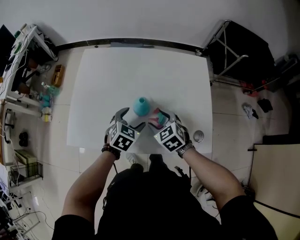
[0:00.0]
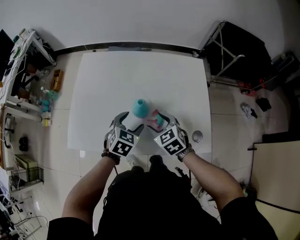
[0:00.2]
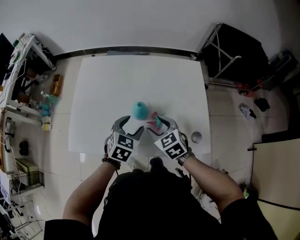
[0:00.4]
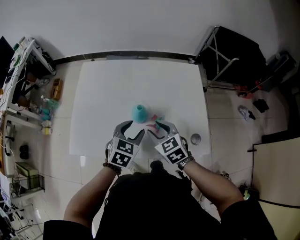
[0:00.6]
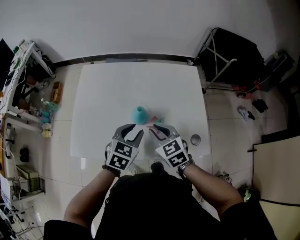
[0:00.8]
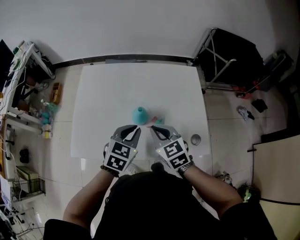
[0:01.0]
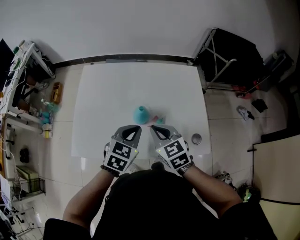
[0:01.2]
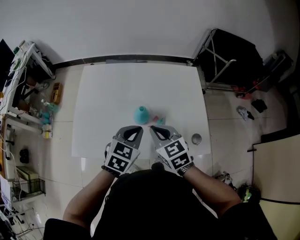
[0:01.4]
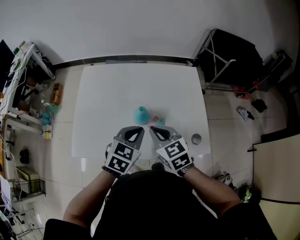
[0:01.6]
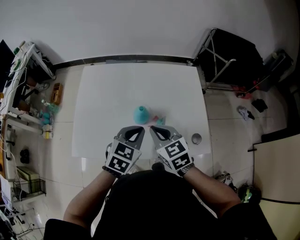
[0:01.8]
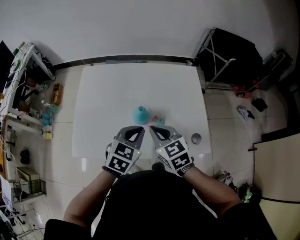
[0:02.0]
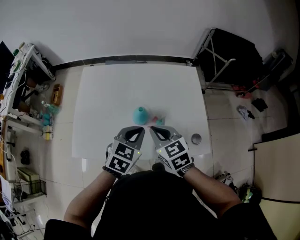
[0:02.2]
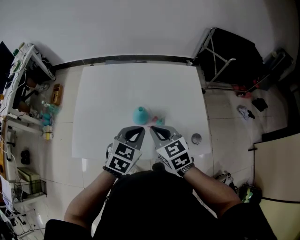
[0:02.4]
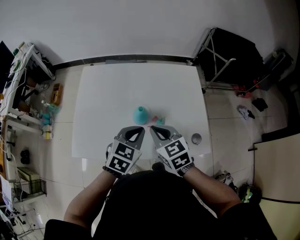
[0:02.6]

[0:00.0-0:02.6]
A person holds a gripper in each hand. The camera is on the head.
0:00.0 to 0:01.2: Both grippers move upward, some 10 cm. The right gripper closes, while the left gripper closes up.
0:01.2 to 0:02.6: There are only small adjustments of the grippers.

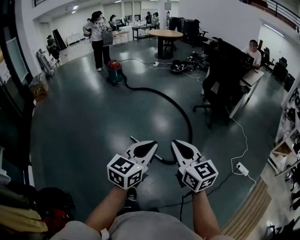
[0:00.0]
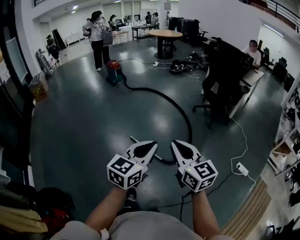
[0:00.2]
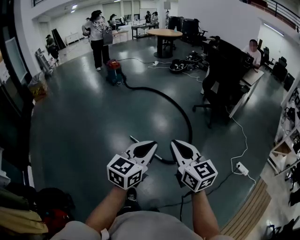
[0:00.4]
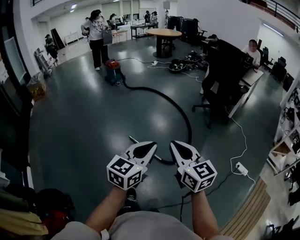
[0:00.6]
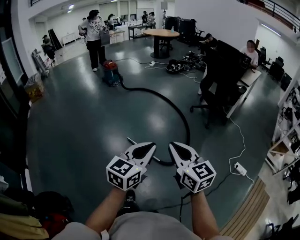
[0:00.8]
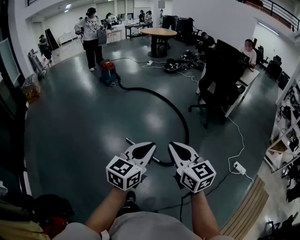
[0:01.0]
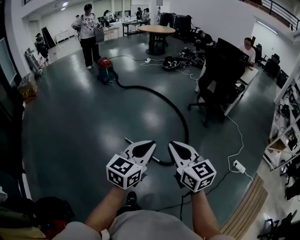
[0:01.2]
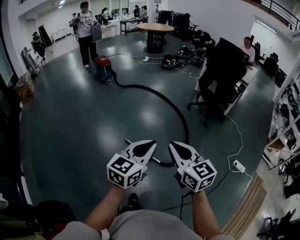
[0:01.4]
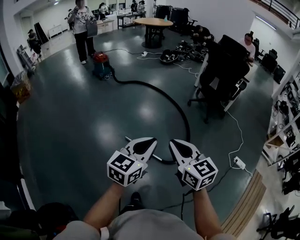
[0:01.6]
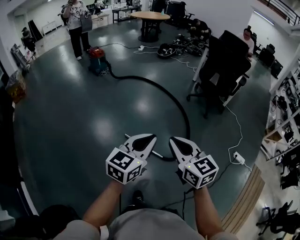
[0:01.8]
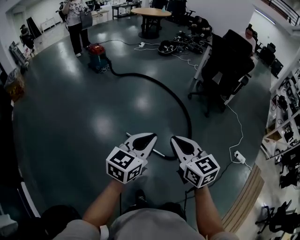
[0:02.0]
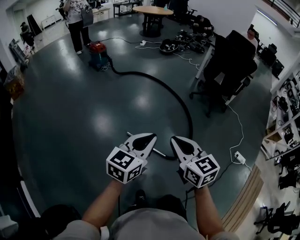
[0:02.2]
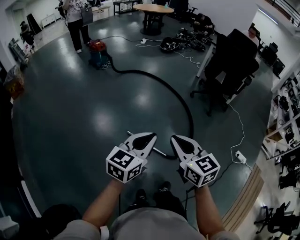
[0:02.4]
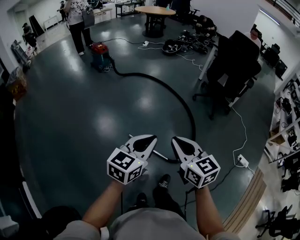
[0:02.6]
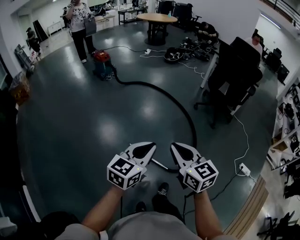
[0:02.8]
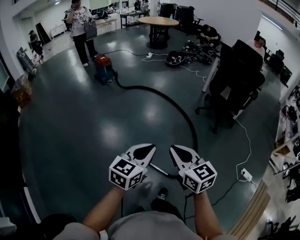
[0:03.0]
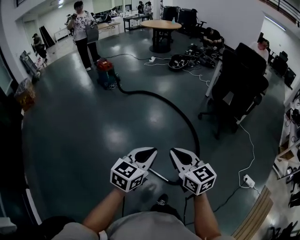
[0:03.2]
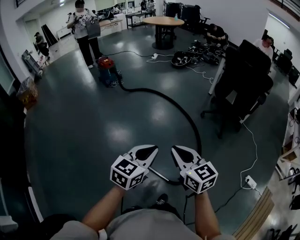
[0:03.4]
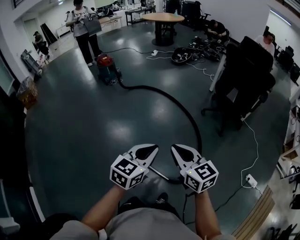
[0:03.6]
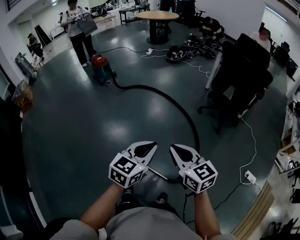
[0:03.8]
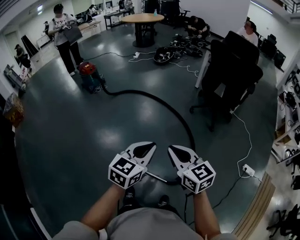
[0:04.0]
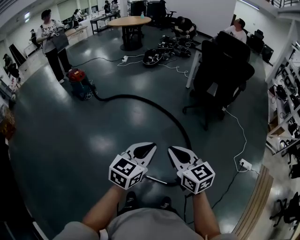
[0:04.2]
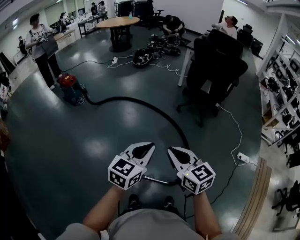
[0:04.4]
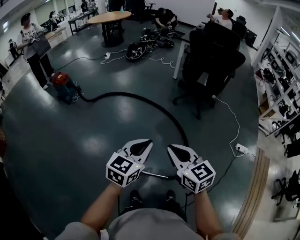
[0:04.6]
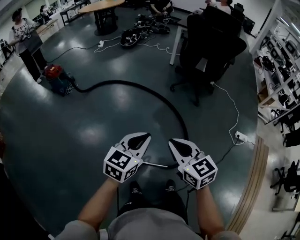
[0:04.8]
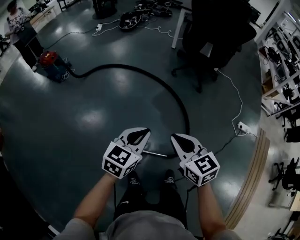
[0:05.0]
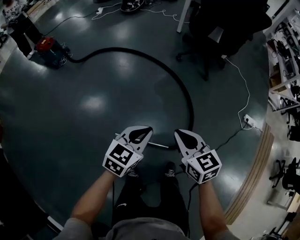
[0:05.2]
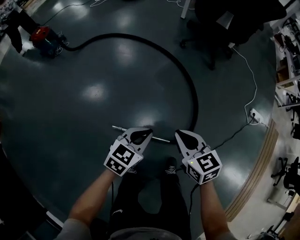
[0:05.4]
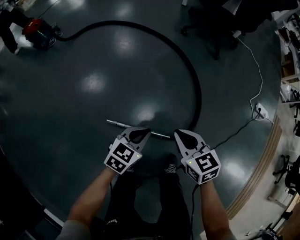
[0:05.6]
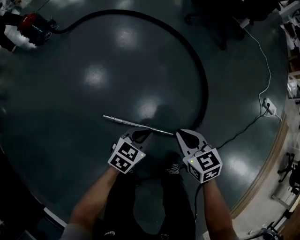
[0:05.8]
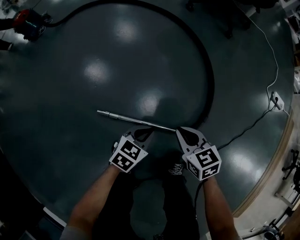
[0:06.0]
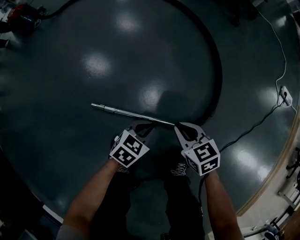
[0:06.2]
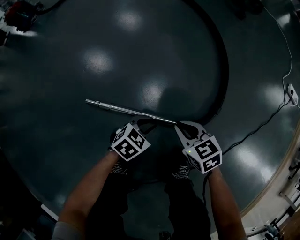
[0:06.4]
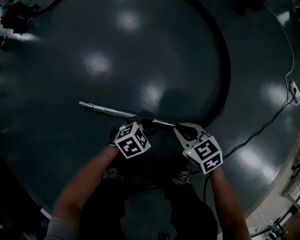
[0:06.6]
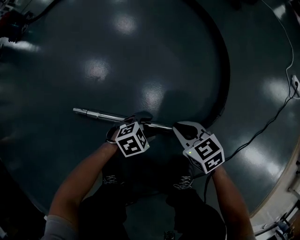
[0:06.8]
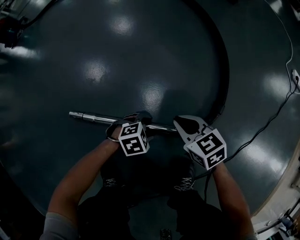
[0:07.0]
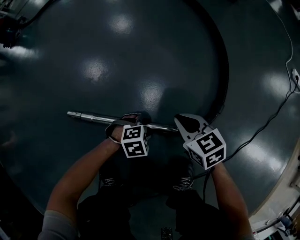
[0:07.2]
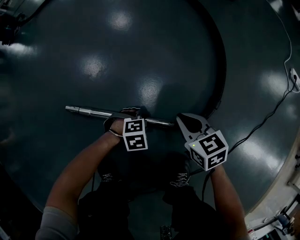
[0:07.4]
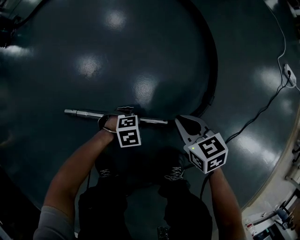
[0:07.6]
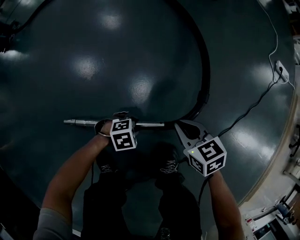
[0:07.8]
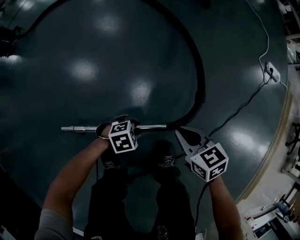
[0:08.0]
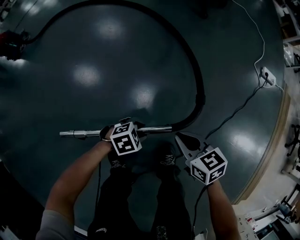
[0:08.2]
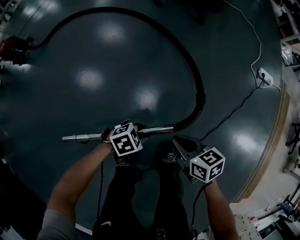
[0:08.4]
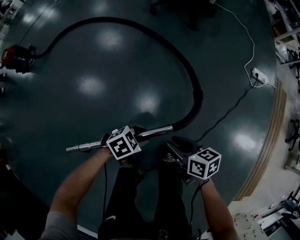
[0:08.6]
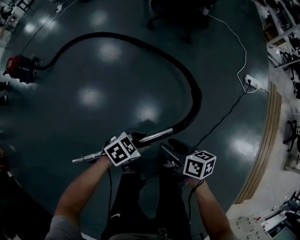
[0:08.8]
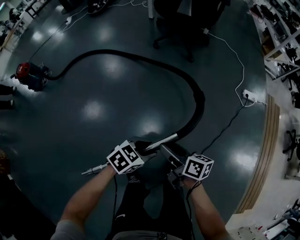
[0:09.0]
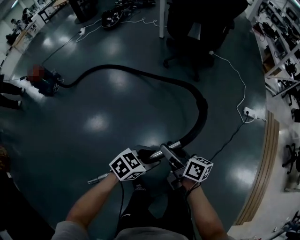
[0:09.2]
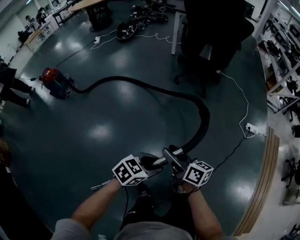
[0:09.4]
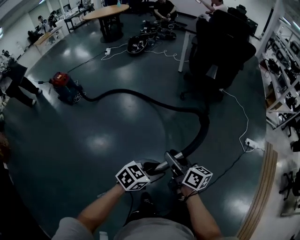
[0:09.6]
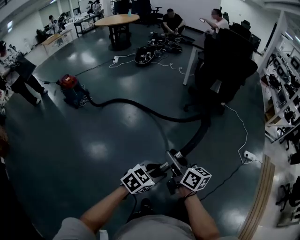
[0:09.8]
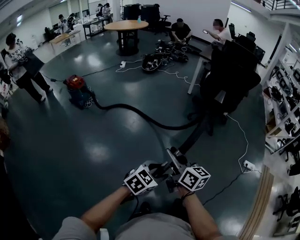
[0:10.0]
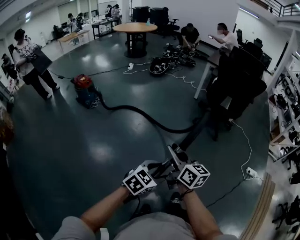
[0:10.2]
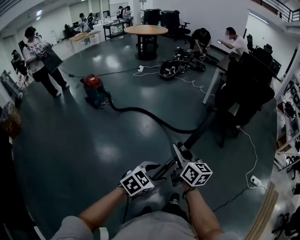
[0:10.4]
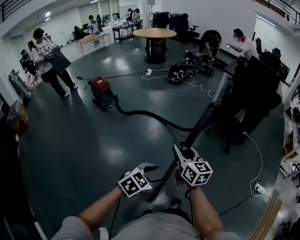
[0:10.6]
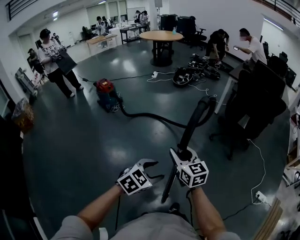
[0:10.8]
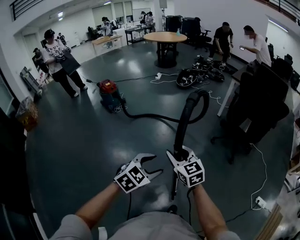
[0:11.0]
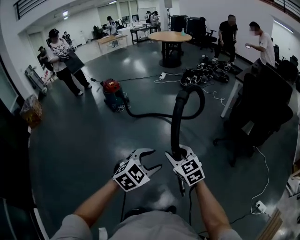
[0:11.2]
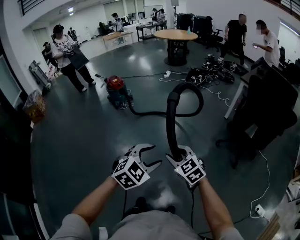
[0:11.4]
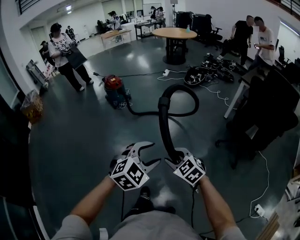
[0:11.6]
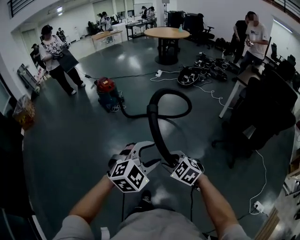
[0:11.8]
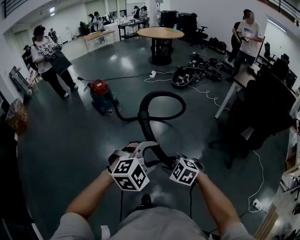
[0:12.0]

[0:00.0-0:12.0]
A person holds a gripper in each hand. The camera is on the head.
0:00.0 to 0:01.6: The grippers both shift forward and to the left by approximately 20 cm.
0:01.6 to 0:03.0: Both grippers travel together forward, some 15 cm.
0:03.0 to 0:04.4: The grippers both shift forward by about 15 cm.
0:04.4 to 0:06.0: Both grippers travel together downward, roughly 60 cm. The right gripper rotates roughly 30 degrees. Meanwhile the left gripper tilts its fingers about 30 degrees downward.
0:06.0 to 0:07.6: The left gripper is displaced downward by roughly 30 cm, rotates approximately 60 degrees, and opens up. Meanwhile the right gripper moves downward, roughly 20 cm.
0:07.6 to 0:09.0: Both grippers move upward, approximately 50 cm. The right gripper rotates around the line of its fingers by approximately 40 degrees, clockwise from behind, and opens its fingers, while the left gripper changes its angle by about 40 degrees.
0:09.0 to 0:10.4: The right gripper heads upward, covering roughly 30 cm, and turns by approximately 40 degrees, while the left gripper ends up some 40 cm from where it was, and changes its angle by approximately 30 degrees.
0:10.4 to 0:12.0: The right gripper moves about 15 cm, and angles its fingers downward, by some 50 degrees; the left gripper ends up roughly 25 cm from where it was, and rotates roughly 40 degrees.

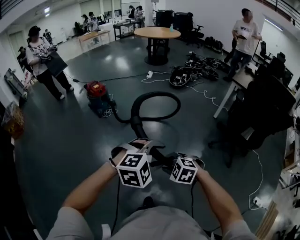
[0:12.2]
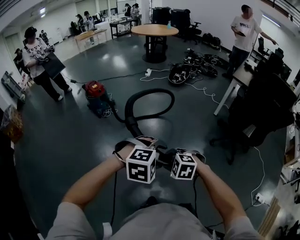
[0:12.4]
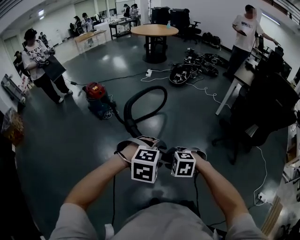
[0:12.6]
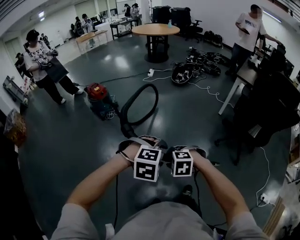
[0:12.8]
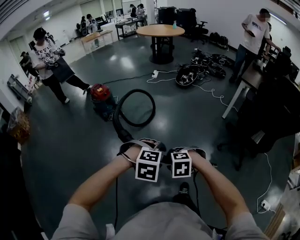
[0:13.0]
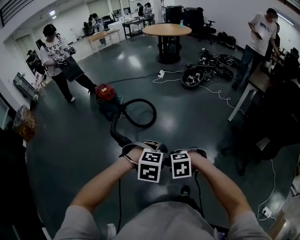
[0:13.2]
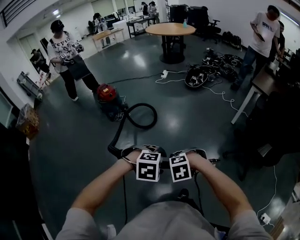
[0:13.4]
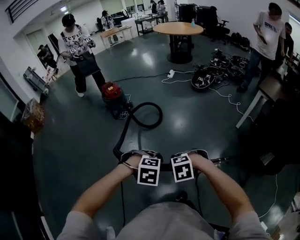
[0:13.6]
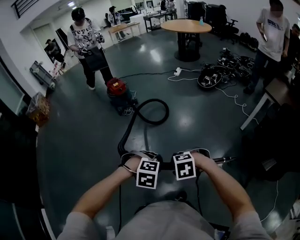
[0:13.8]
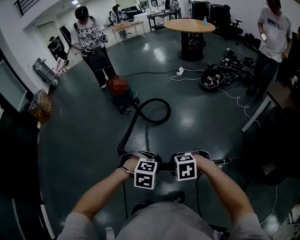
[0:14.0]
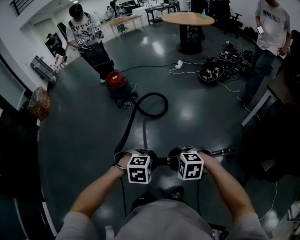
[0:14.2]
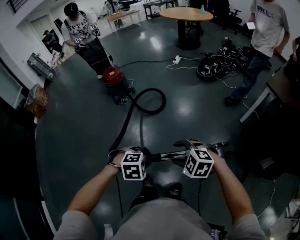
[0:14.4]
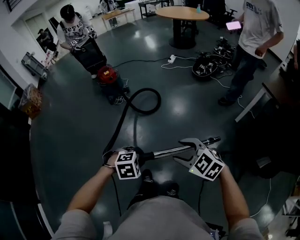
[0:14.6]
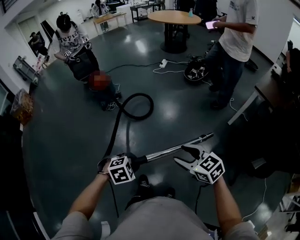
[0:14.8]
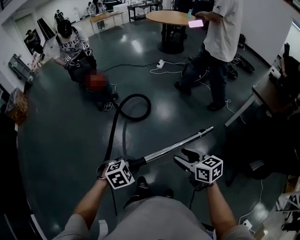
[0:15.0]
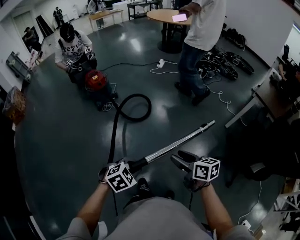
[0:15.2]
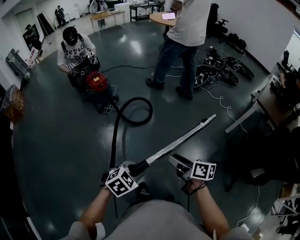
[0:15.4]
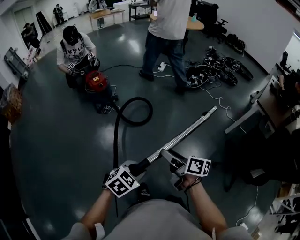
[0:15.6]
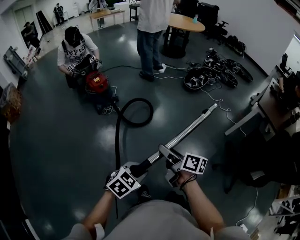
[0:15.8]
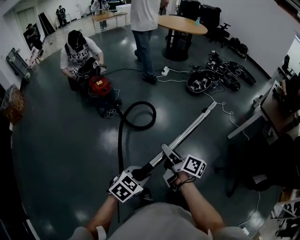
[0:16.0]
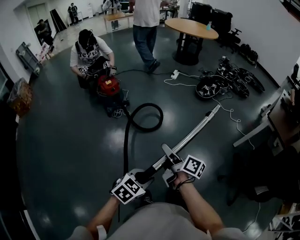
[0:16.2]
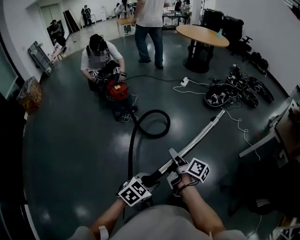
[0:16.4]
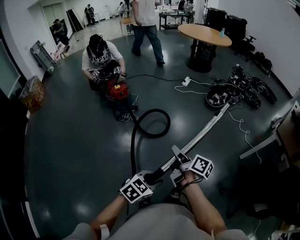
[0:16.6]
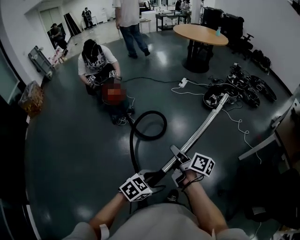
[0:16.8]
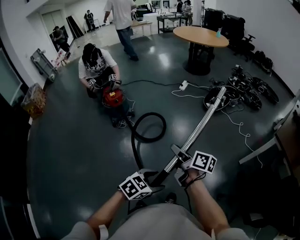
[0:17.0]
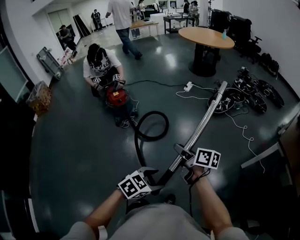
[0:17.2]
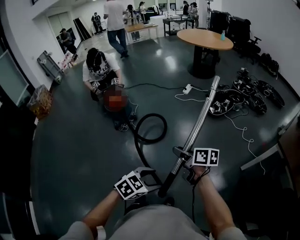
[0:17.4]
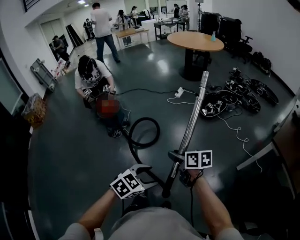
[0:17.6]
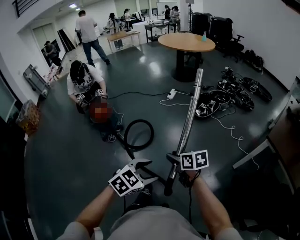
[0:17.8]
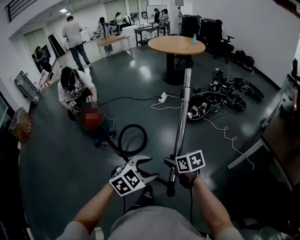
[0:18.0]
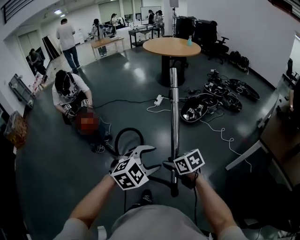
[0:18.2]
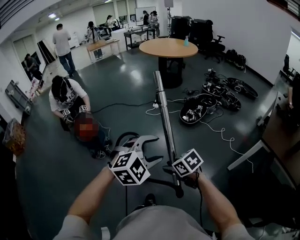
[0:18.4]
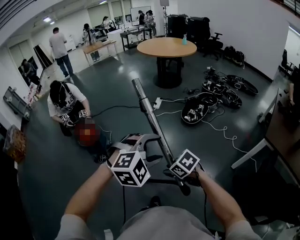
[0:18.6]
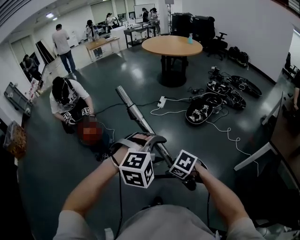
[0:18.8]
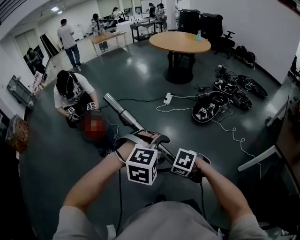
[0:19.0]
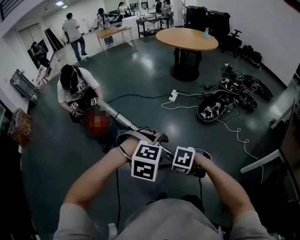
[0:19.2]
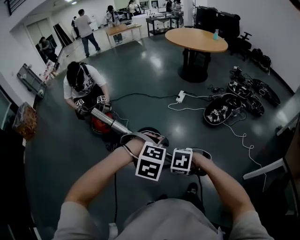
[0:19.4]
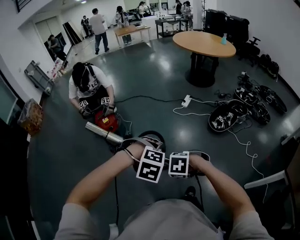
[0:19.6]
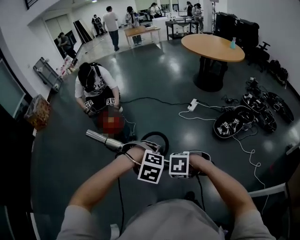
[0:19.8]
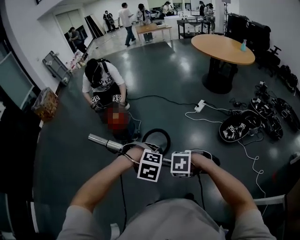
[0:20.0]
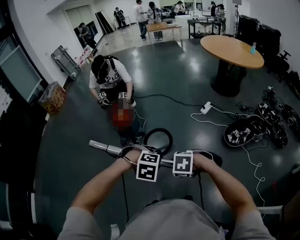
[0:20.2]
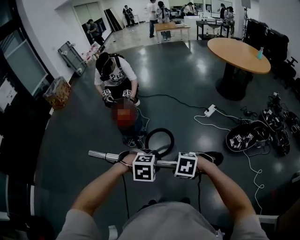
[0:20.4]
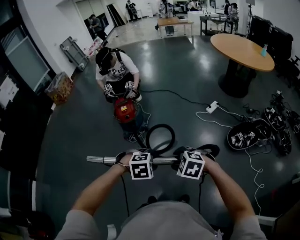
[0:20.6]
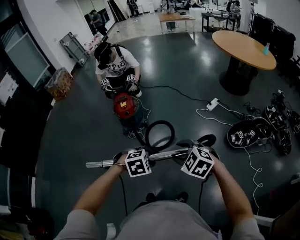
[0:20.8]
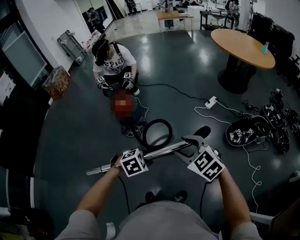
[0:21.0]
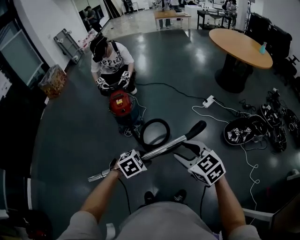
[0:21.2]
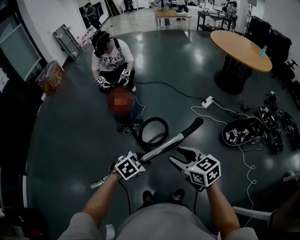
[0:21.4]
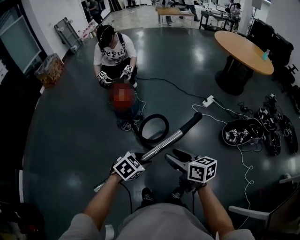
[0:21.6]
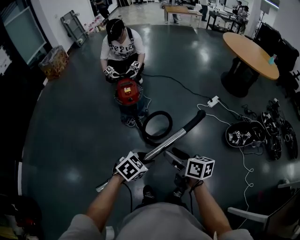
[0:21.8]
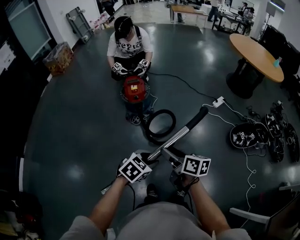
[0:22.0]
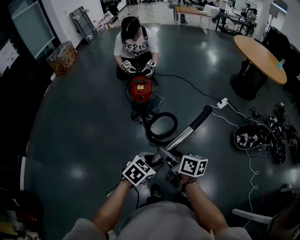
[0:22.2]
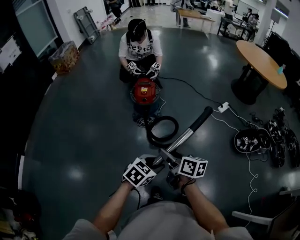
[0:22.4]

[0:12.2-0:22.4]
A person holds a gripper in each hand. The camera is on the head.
0:12.2 to 0:13.6: The right gripper shifts by some 20 cm, and changes its angle by roughly 40 degrees, while the left gripper changes place by about 20 cm, and tips its fingers downward by approximately 30 degrees.
0:13.6 to 0:15.2: The left gripper shifts by roughly 15 cm, swivels approximately 40 degrees, and closes up; the right gripper moves some 15 cm, and points its fingers some 50 degrees further upward.
0:15.2 to 0:16.6: The left gripper travels forward by about 10 cm, and turns by some 30 degrees. The right gripper moves forward and to the left, some 20 cm, and swivels roughly 40 degrees.
0:16.6 to 0:18.0: The right gripper shifts approximately 25 cm to the right and forward, and points its fingers approximately 30 degrees further downward. Meanwhile the left gripper heads forward and to the right, covering roughly 30 cm, changes its angle by about 20 degrees, and opens its fingers.
0:18.0 to 0:19.4: The left gripper goes upward and returns, some 10 cm each way, and tilts its fingers about 30 degrees downward, while the right gripper moves about 20 cm, and angles its fingers downward, by roughly 40 degrees.
0:19.4 to 0:21.0: The right gripper changes place by roughly 20 cm, and angles its fingers upward, by about 40 degrees; the left gripper travels downward by about 10 cm, rotates around the line of its fingers by about 60 degrees, counterclockwise from behind, and closes.
0:21.0 to 0:22.4: The left gripper moves to the left, approximately 15 cm, and turns by some 40 degrees, while the right gripper goes approximately 30 cm to the left, and rolls clockwise, seen from behind, by some 60 degrees.
